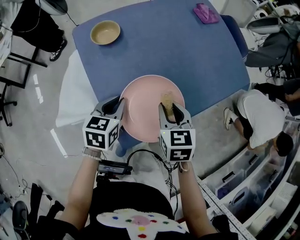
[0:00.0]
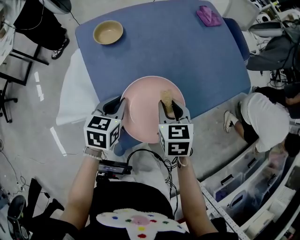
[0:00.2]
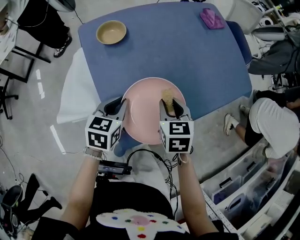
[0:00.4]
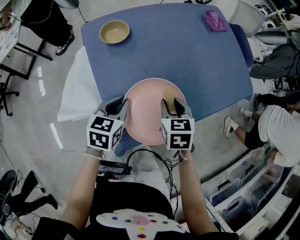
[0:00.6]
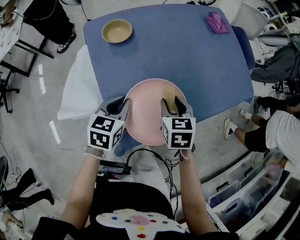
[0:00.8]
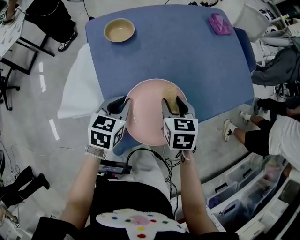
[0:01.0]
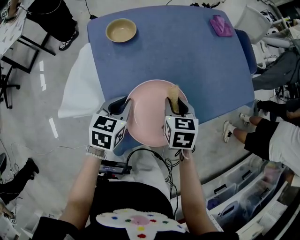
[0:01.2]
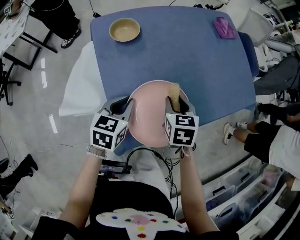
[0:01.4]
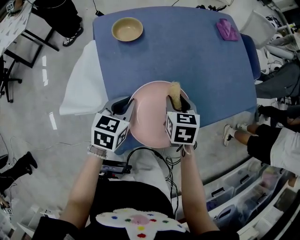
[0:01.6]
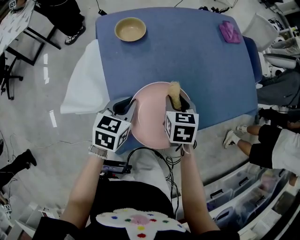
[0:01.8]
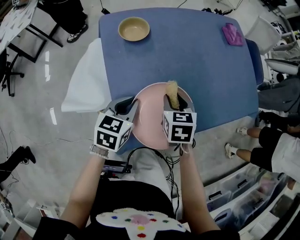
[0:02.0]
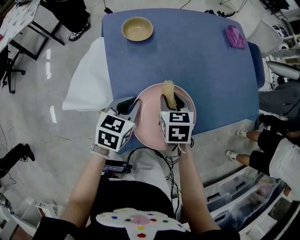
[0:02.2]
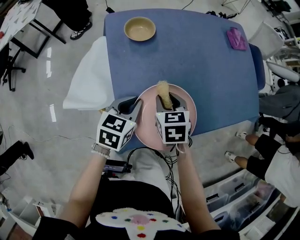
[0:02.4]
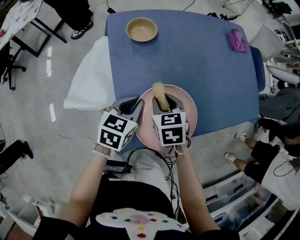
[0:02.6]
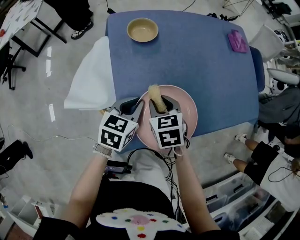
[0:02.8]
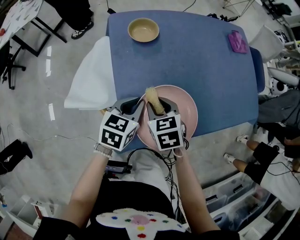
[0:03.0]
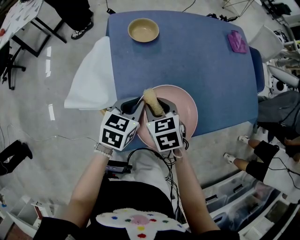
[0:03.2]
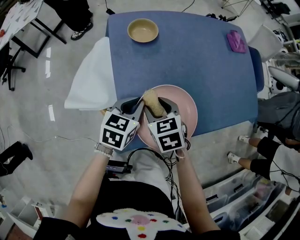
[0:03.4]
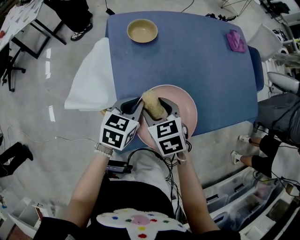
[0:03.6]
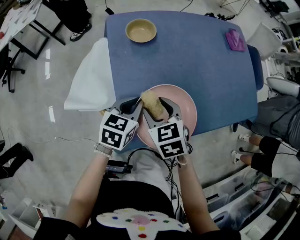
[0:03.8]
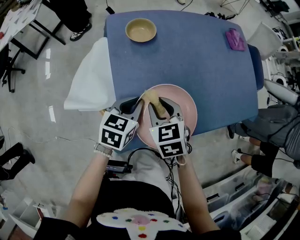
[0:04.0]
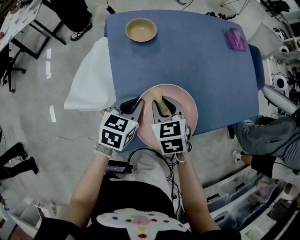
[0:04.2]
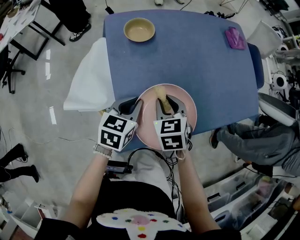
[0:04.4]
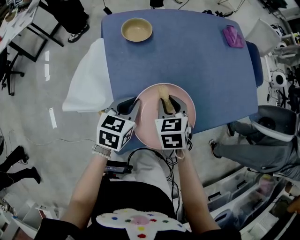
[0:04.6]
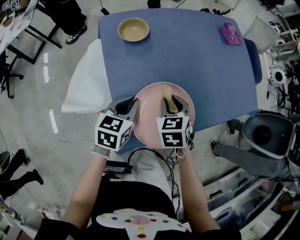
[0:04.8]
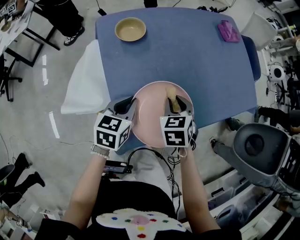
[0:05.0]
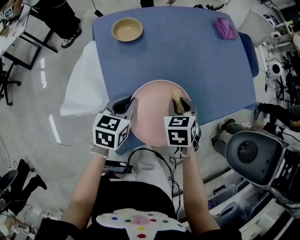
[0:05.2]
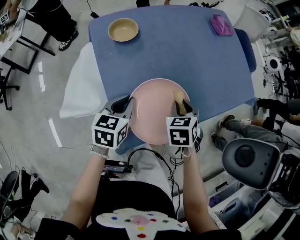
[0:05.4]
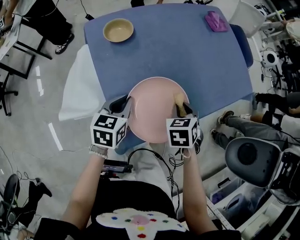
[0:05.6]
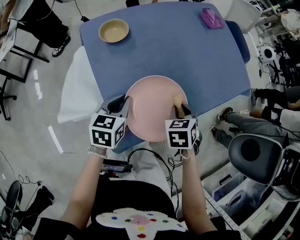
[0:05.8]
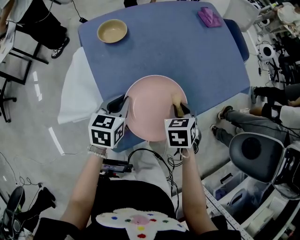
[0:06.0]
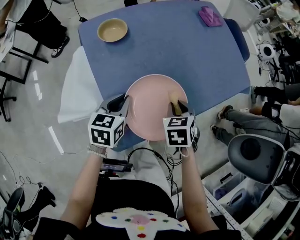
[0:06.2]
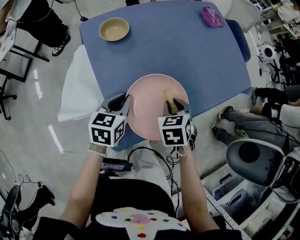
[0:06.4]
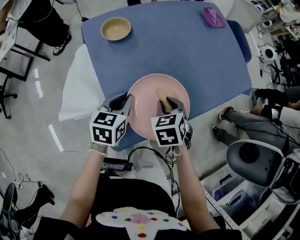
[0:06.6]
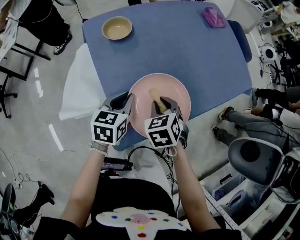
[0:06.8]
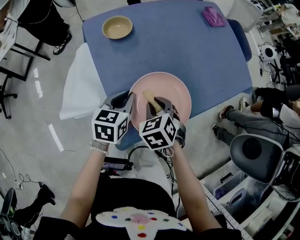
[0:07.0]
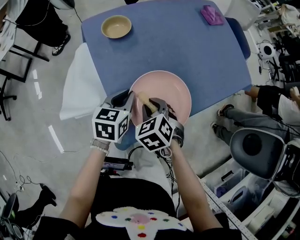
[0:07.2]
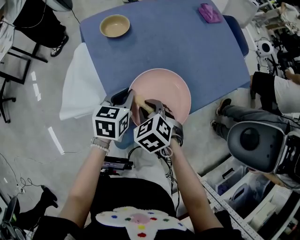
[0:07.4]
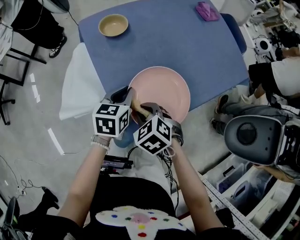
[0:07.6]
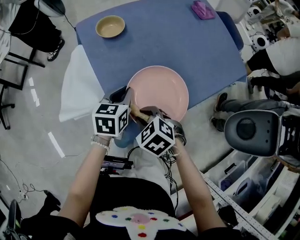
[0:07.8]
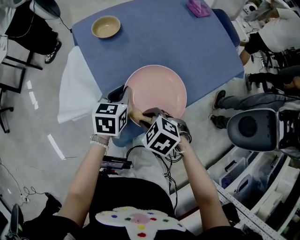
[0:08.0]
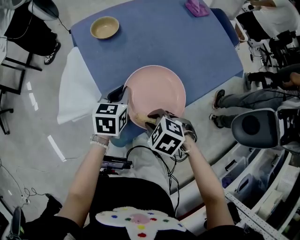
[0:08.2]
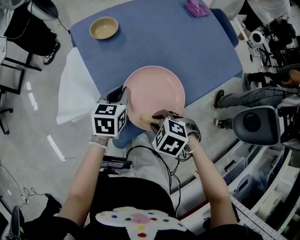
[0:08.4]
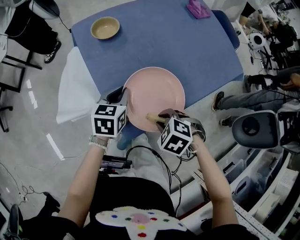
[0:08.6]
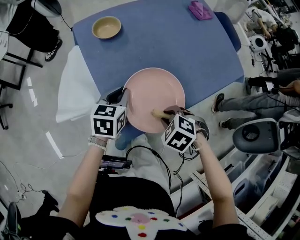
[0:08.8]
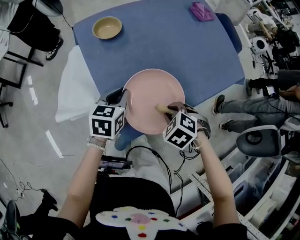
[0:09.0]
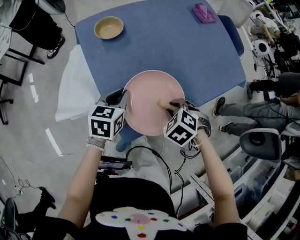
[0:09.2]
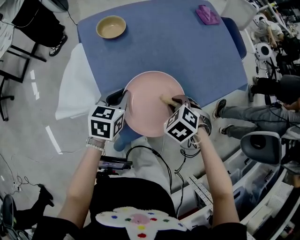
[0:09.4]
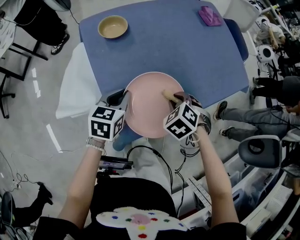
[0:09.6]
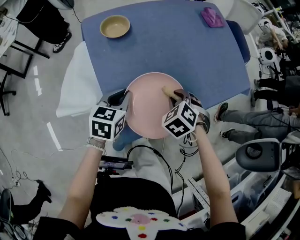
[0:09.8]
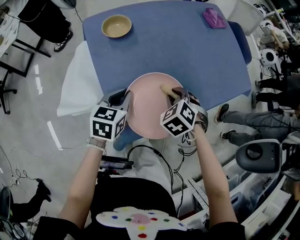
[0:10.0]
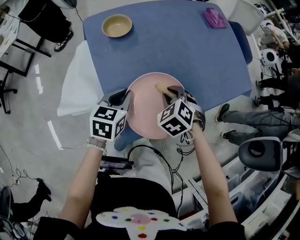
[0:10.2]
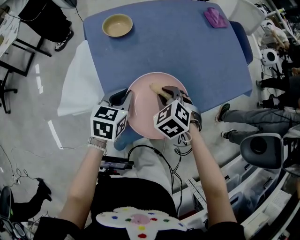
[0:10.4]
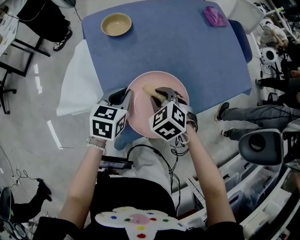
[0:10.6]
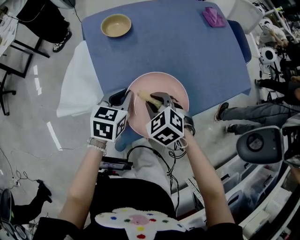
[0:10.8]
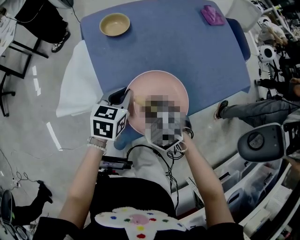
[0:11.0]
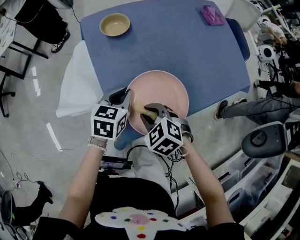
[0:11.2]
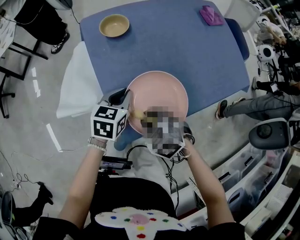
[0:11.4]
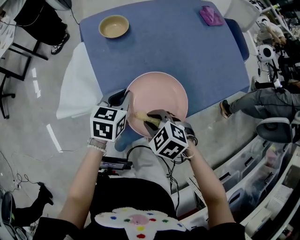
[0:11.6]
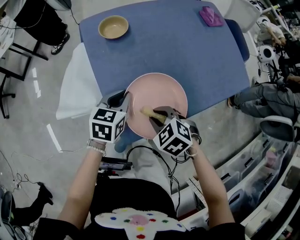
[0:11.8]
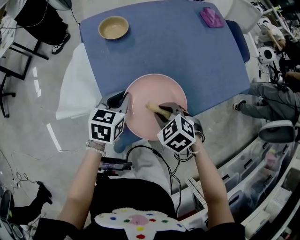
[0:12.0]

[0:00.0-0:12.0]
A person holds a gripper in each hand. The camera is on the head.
0:00.0 to 0:01.6: The right gripper goes approximately 5 cm forward.
0:01.6 to 0:03.0: The right gripper moves to the left, some 10 cm, and changes its angle by roughly 20 degrees.
0:03.0 to 0:04.4: The right gripper opens and closes again.
0:04.4 to 0:06.0: The right gripper shifts about 15 cm to the right, and swivels some 30 degrees.
0:06.0 to 0:07.6: The right gripper goes some 20 cm to the left and backward, and turns by some 40 degrees.
0:07.6 to 0:09.0: The right gripper moves approximately 15 cm, and swivels about 20 degrees.
0:09.0 to 0:10.4: The right gripper ends up roughly 10 cm from where it was.
0:10.4 to 0:12.0: The right gripper is displaced backward by some 5 cm.

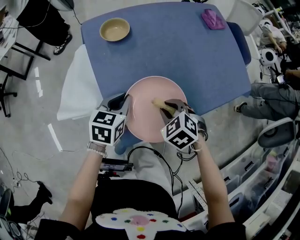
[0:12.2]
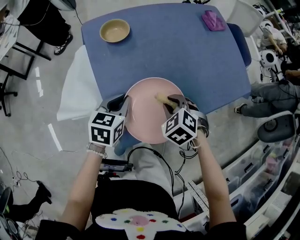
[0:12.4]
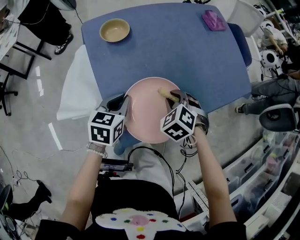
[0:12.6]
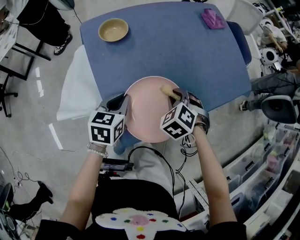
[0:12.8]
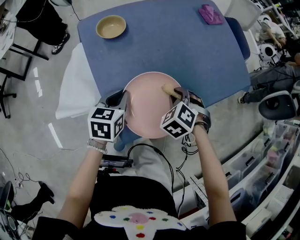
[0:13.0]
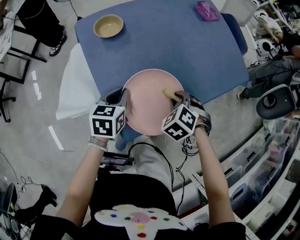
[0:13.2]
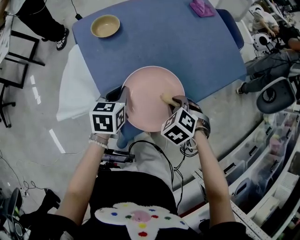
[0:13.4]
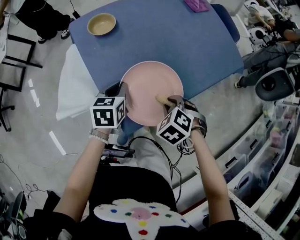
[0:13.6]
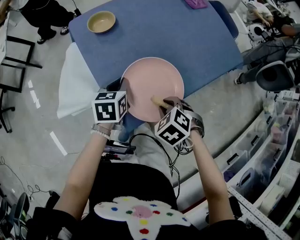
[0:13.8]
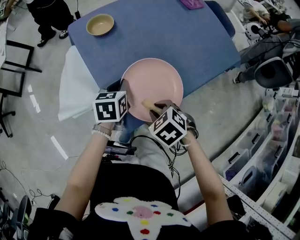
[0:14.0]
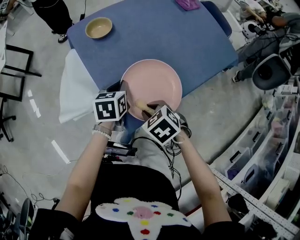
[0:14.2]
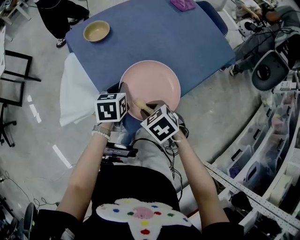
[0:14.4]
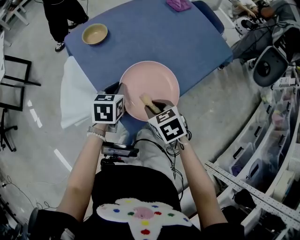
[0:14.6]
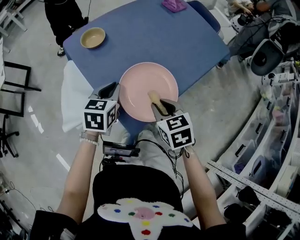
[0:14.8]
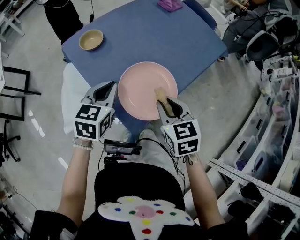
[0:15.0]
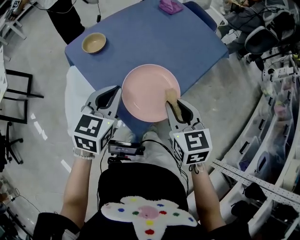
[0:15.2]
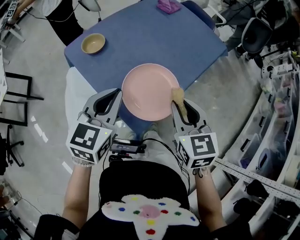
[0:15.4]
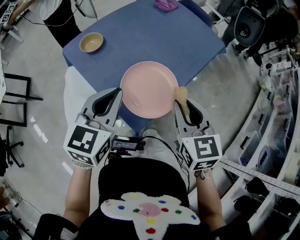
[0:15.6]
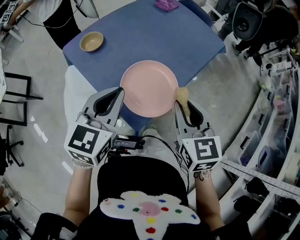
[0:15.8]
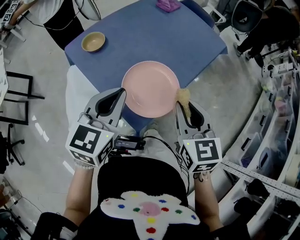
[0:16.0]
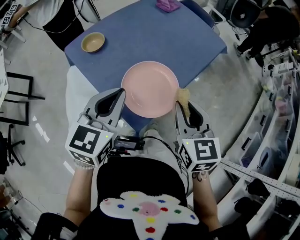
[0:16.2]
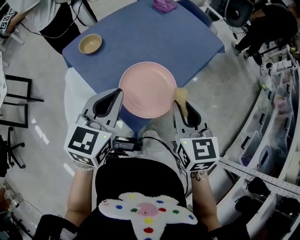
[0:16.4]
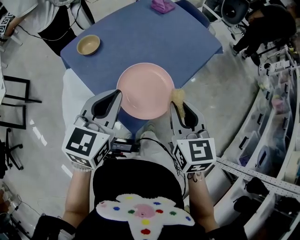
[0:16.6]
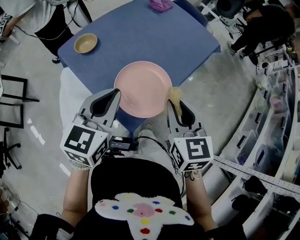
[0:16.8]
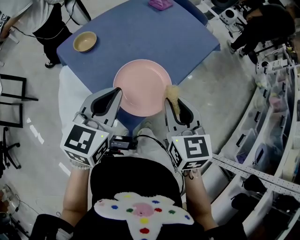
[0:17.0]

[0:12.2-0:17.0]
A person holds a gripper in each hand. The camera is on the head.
0:12.2 to 0:13.8: The right gripper shifts by some 5 cm.
0:13.8 to 0:15.4: The two grippers go some 20 cm upward. The left gripper changes its angle by approximately 40 degrees, while the right gripper points its fingers roughly 50 degrees further upward.
0:15.4 to 0:17.0: The grippers move only a little.

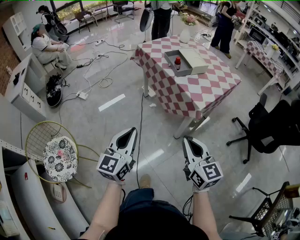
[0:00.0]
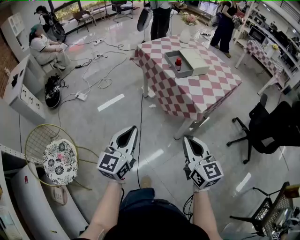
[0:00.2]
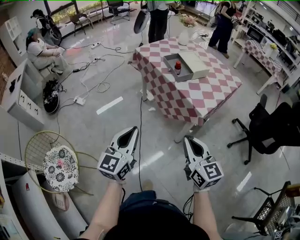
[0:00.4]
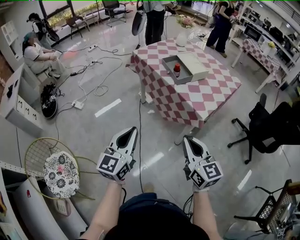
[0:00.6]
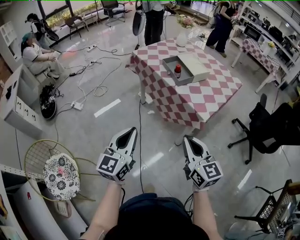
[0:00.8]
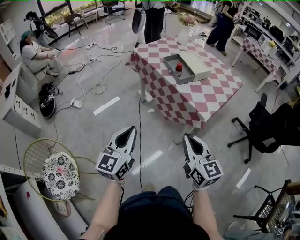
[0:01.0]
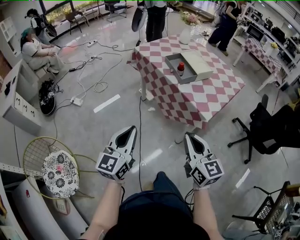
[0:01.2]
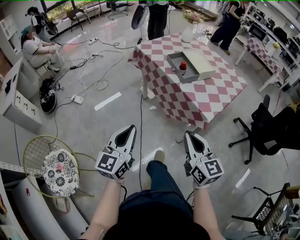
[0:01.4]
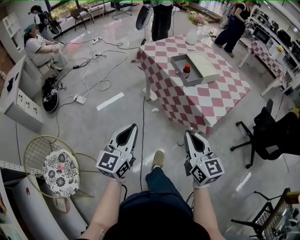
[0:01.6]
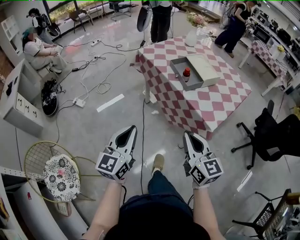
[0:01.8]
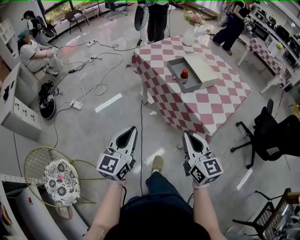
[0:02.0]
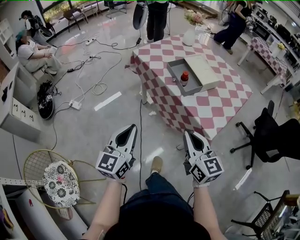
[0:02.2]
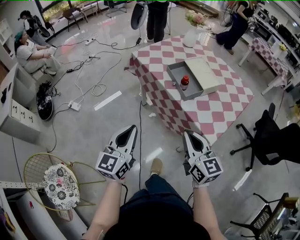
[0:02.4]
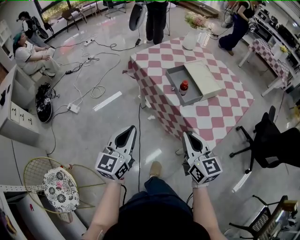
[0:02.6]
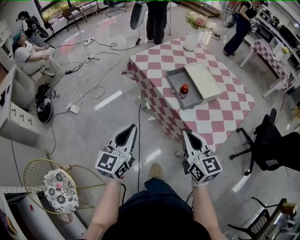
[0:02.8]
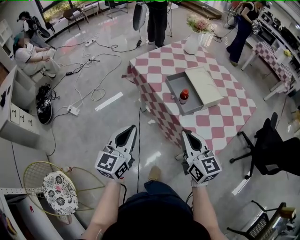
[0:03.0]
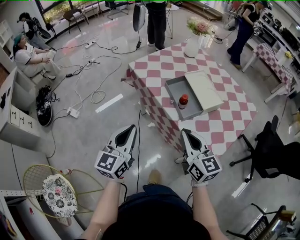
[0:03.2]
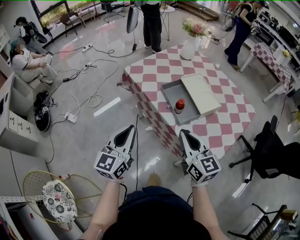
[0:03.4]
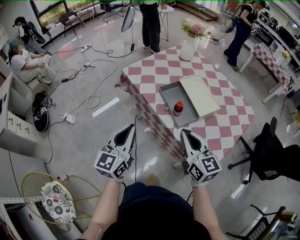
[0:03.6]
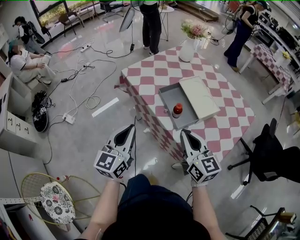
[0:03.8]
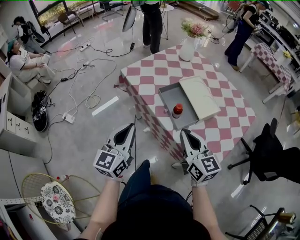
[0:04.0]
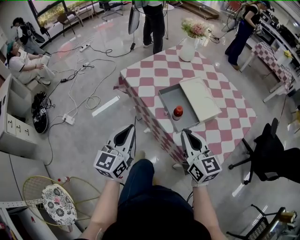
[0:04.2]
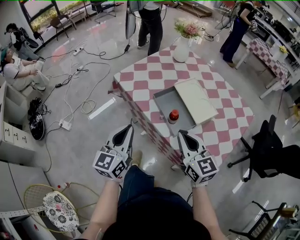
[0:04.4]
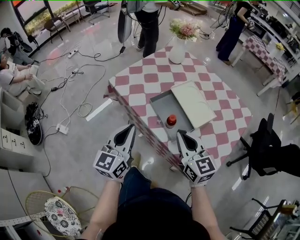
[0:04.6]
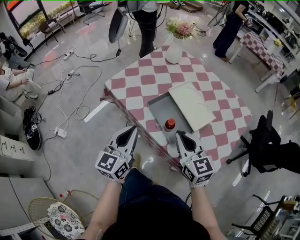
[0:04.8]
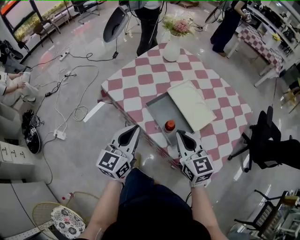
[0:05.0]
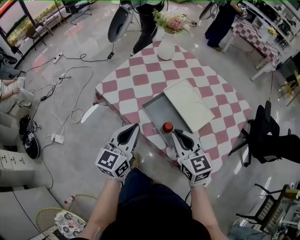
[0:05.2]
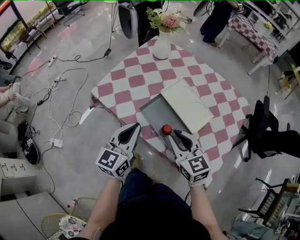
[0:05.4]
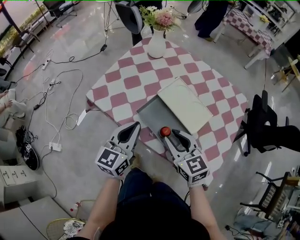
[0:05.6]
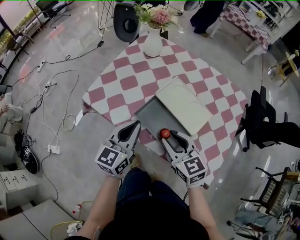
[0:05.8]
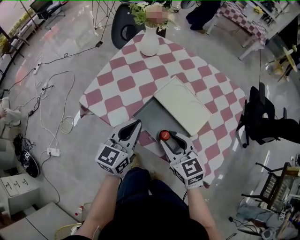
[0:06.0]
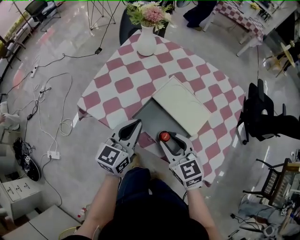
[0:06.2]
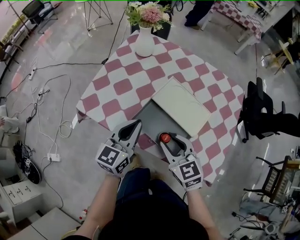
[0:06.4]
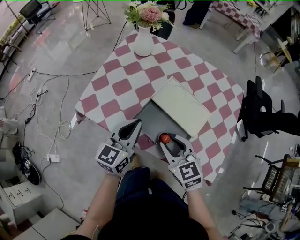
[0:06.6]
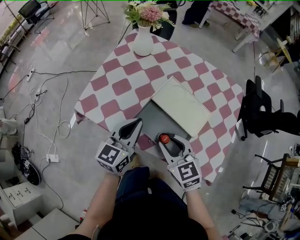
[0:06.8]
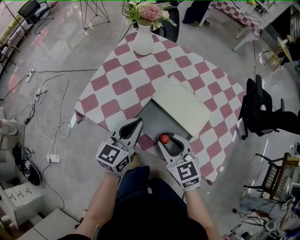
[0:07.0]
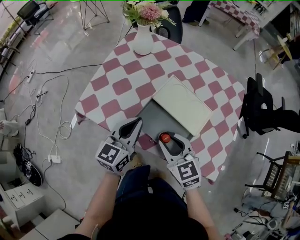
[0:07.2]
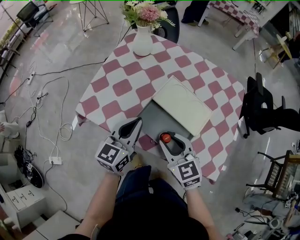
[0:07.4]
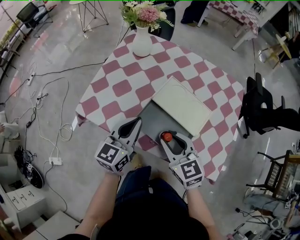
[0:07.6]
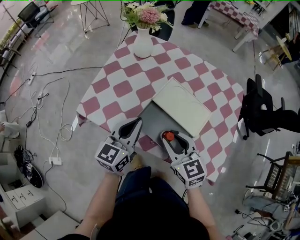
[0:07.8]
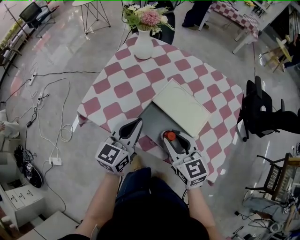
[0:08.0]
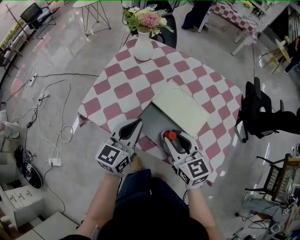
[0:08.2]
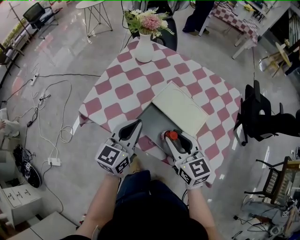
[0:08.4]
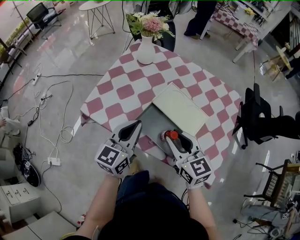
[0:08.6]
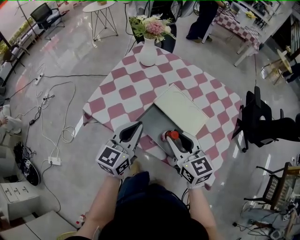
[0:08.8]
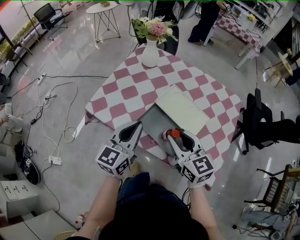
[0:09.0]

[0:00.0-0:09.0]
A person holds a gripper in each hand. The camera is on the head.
0:00.0 to 0:01.6: Both grippers travel together forward, roughly 15 cm.
0:01.6 to 0:03.0: The two grippers go about 25 cm forward.
0:03.0 to 0:04.4: Both grippers travel together forward, approximately 15 cm.
0:04.4 to 0:06.0: The left gripper travels forward by about 20 cm, and swivels about 30 degrees. The right gripper shifts approximately 15 cm forward and downward, and opens.
0:06.0 to 0:07.6: There are only small adjustments of the grippers.
0:07.6 to 0:09.0: The right gripper moves upward, about 5 cm; the left gripper moves some 5 cm.
